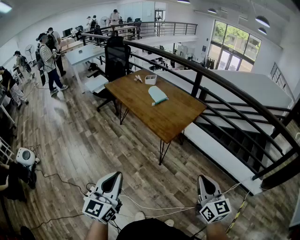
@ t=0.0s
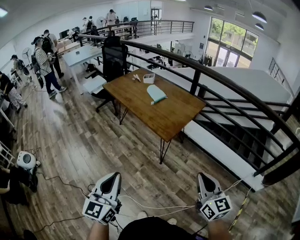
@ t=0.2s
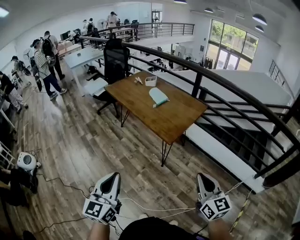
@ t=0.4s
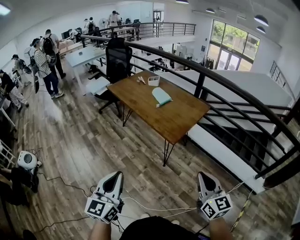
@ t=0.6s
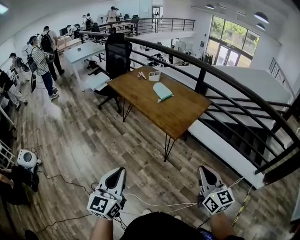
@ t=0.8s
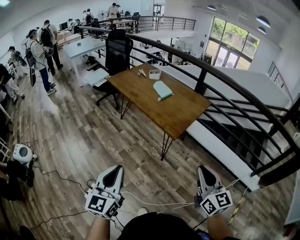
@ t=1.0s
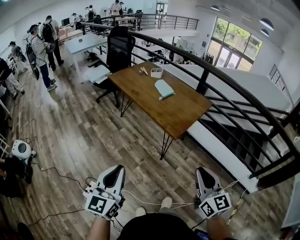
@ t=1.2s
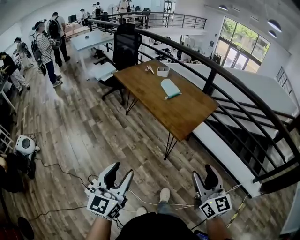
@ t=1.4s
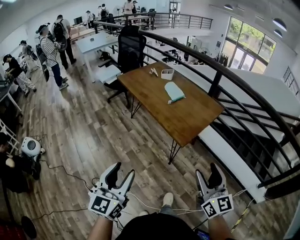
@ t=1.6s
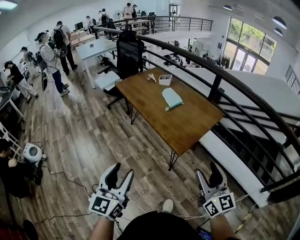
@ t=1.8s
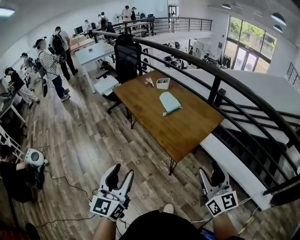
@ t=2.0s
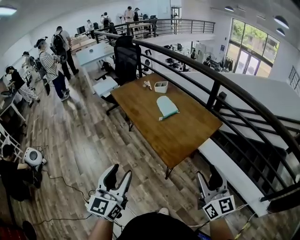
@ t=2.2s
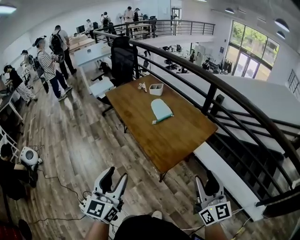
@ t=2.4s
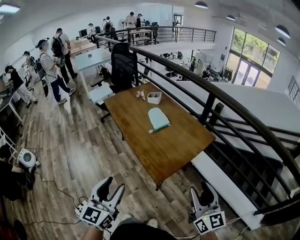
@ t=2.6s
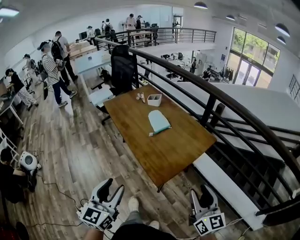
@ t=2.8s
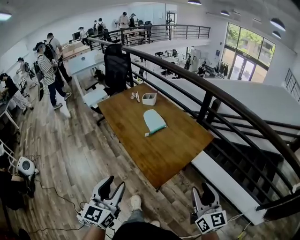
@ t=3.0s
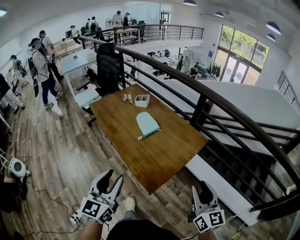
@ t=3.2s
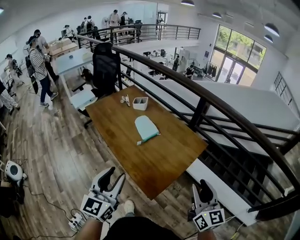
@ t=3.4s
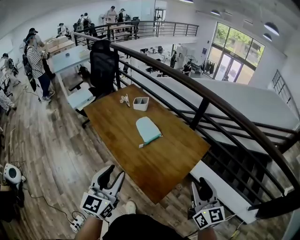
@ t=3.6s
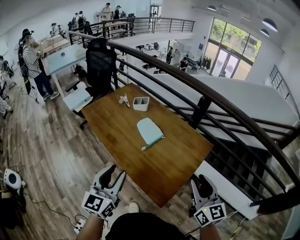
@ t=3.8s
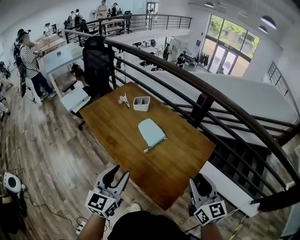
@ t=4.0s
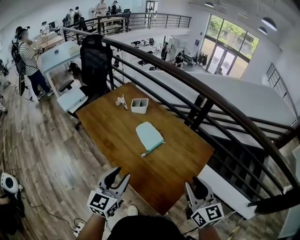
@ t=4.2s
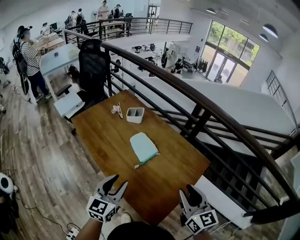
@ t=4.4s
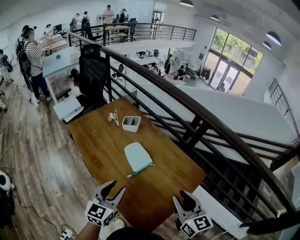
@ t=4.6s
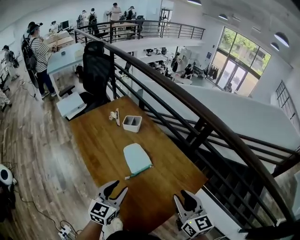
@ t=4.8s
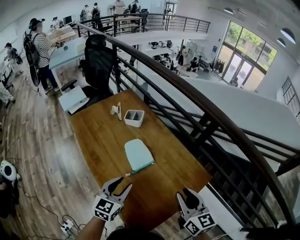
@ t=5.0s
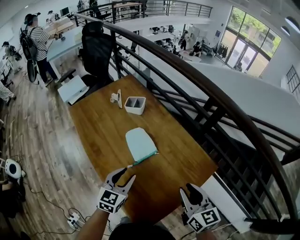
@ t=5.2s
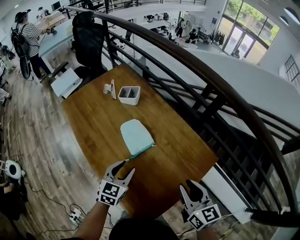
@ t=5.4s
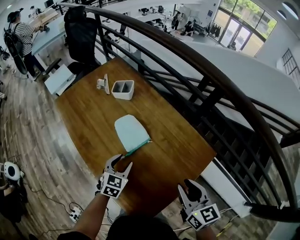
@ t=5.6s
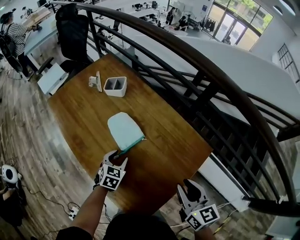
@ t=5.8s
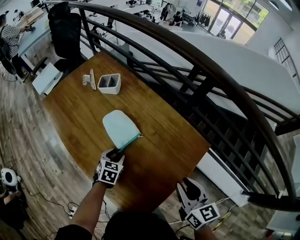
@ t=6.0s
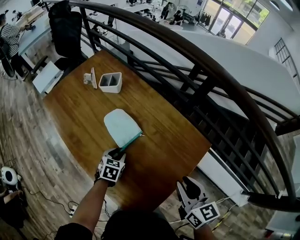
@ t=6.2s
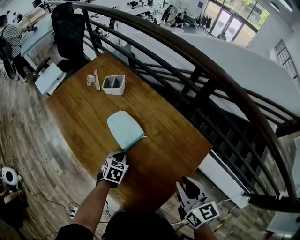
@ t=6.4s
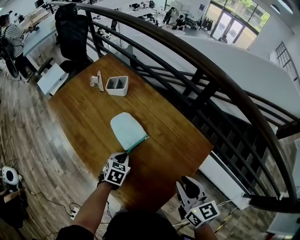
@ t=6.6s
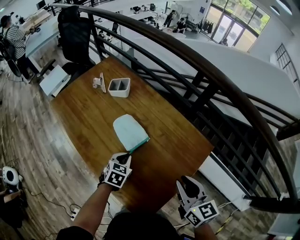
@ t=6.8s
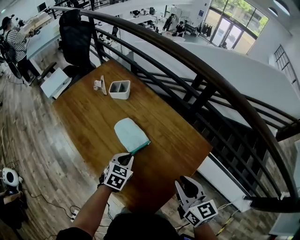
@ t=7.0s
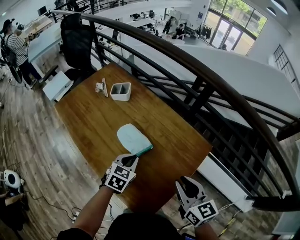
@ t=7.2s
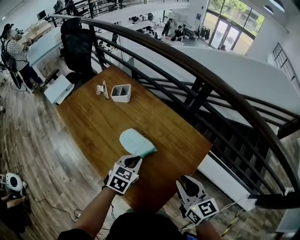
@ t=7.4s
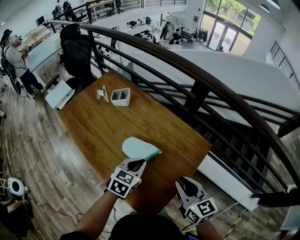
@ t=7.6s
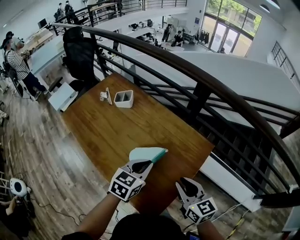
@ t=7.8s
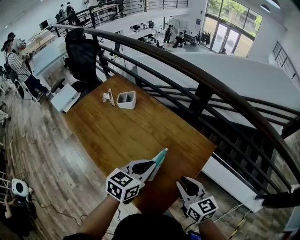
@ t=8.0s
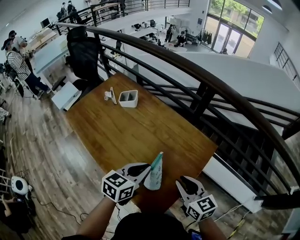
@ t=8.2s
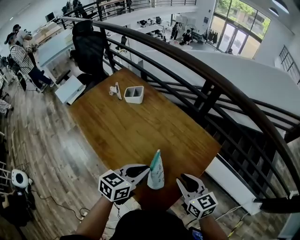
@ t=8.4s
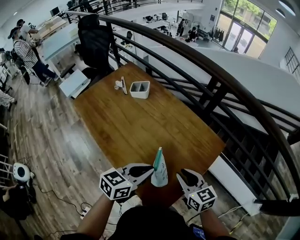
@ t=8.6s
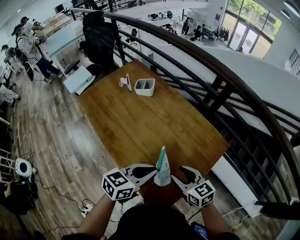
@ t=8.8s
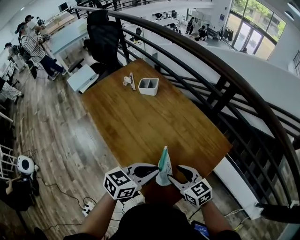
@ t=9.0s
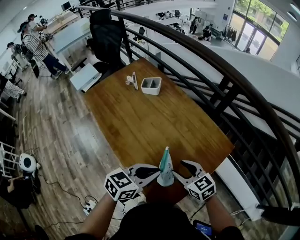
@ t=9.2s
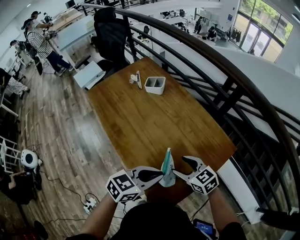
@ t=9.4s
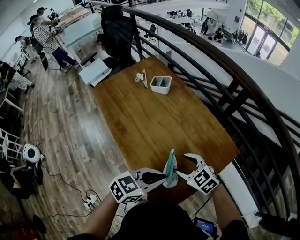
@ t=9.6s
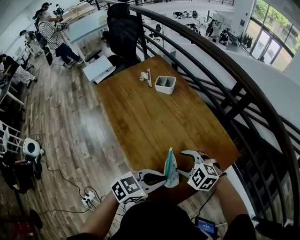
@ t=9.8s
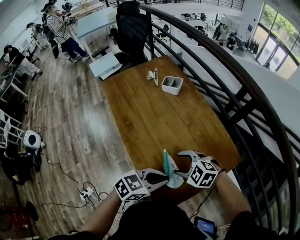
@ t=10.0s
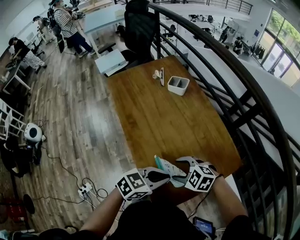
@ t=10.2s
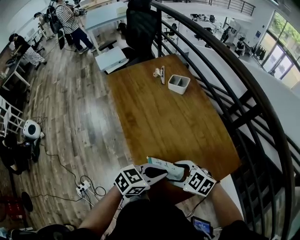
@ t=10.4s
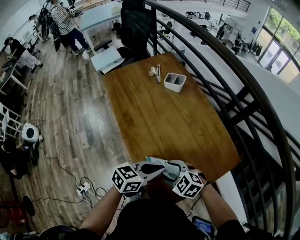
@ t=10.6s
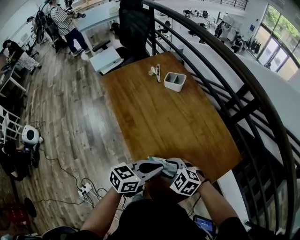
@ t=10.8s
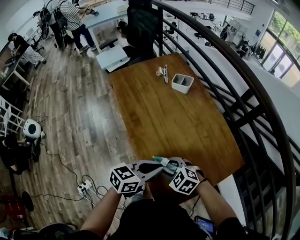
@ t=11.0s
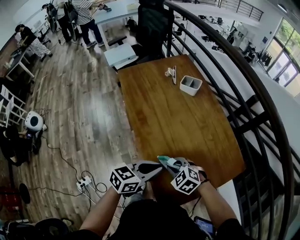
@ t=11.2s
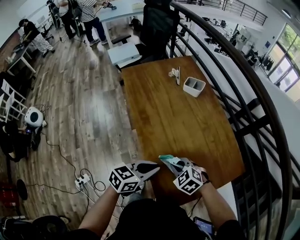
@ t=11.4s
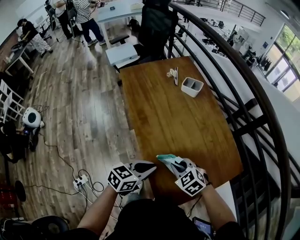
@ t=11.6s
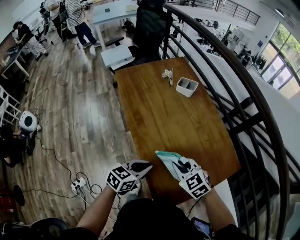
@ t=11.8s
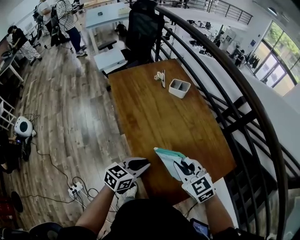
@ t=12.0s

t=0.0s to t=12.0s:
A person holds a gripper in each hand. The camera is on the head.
t=0.0s to t=1.6s: The right gripper is displaced forward and to the left by some 10 cm, and opens its fingers. Meanwhile the left gripper heads forward, covering roughly 5 cm, and opens up.
t=1.6s to t=3.0s: The grippers both shift forward and to the right by some 25 cm.
t=3.0s to t=4.4s: The right gripper heads forward and to the left, covering about 25 cm. The left gripper goes some 30 cm forward.
t=4.4s to t=6.0s: The left gripper goes approximately 30 cm downward, forward and to the right, and tilts its fingers roughly 40 degrees downward. Meanwhile the right gripper is displaced to the right, downward and forward by about 15 cm.
t=6.0s to t=7.6s: The right gripper changes place by roughly 5 cm; the left gripper heads upward and to the right, covering roughly 15 cm, changes its angle by roughly 20 degrees, and closes its fingers.
t=7.6s to t=9.0s: The right gripper goes about 15 cm to the left and downward, rotates some 30 degrees, and opens; the left gripper moves backward and upward, about 10 cm, and swivels approximately 20 degrees.
t=9.0s to t=10.4s: The right gripper changes place by roughly 5 cm, and rotates approximately 50 degrees.
t=10.4s to t=12.0s: The left gripper changes place by some 10 cm. The right gripper travels upward by approximately 5 cm, rotates approximately 30 degrees, and closes.

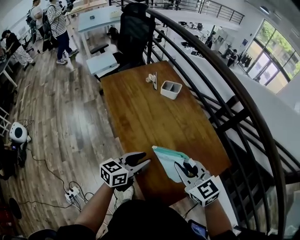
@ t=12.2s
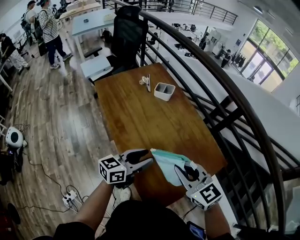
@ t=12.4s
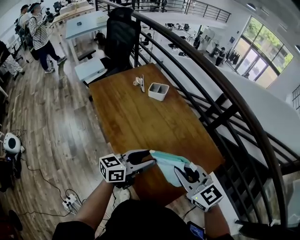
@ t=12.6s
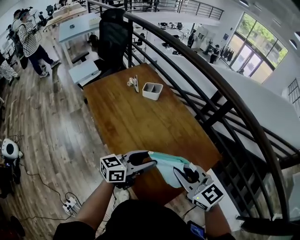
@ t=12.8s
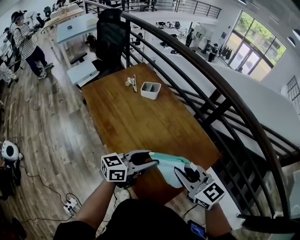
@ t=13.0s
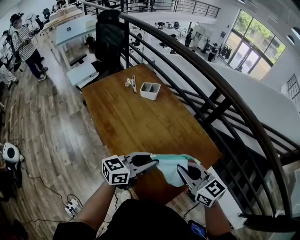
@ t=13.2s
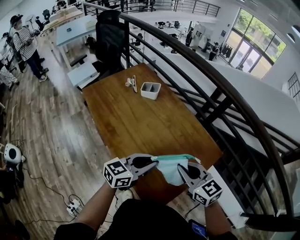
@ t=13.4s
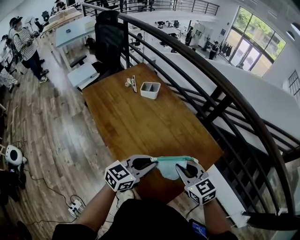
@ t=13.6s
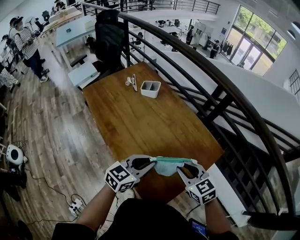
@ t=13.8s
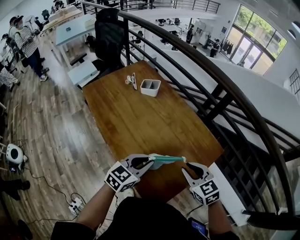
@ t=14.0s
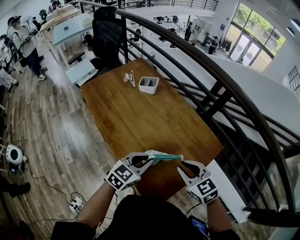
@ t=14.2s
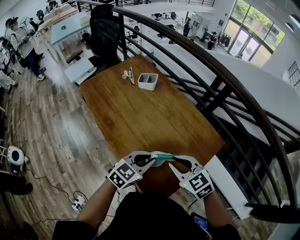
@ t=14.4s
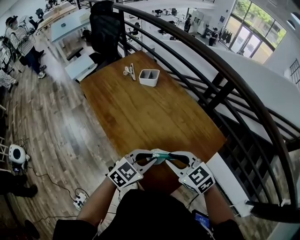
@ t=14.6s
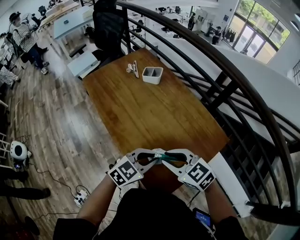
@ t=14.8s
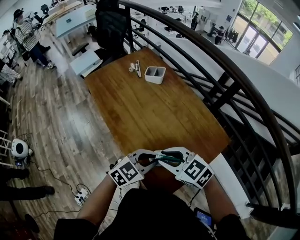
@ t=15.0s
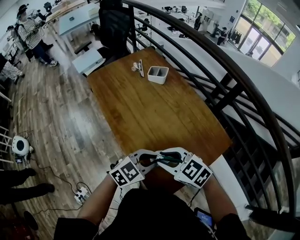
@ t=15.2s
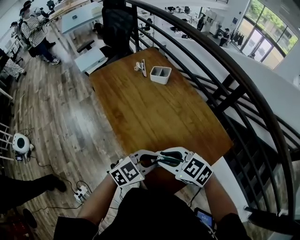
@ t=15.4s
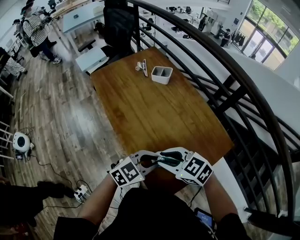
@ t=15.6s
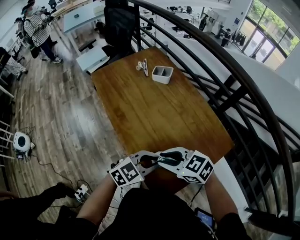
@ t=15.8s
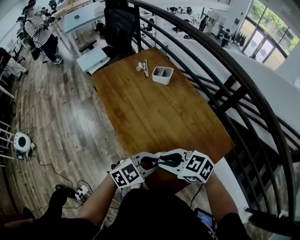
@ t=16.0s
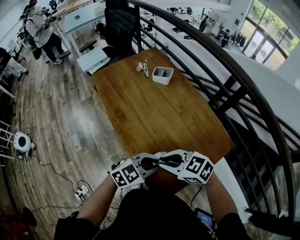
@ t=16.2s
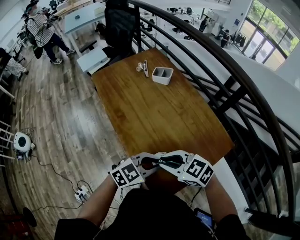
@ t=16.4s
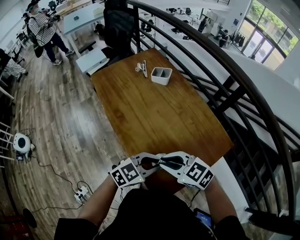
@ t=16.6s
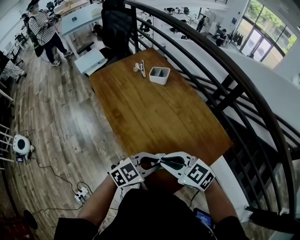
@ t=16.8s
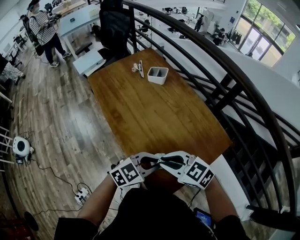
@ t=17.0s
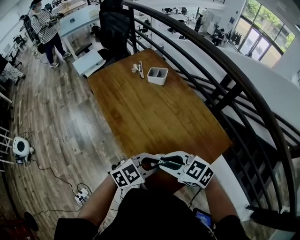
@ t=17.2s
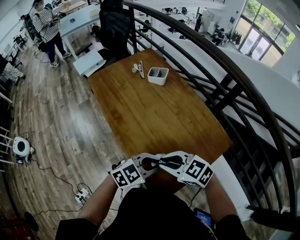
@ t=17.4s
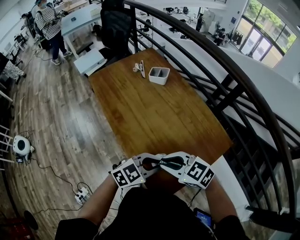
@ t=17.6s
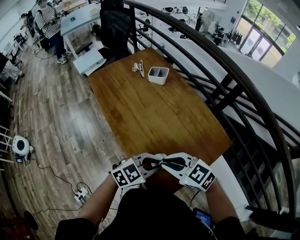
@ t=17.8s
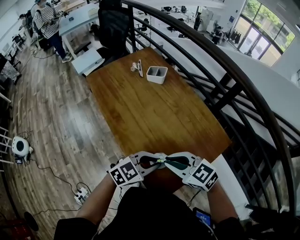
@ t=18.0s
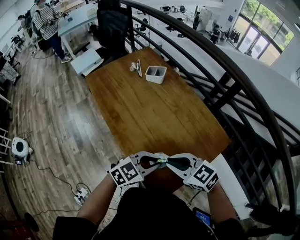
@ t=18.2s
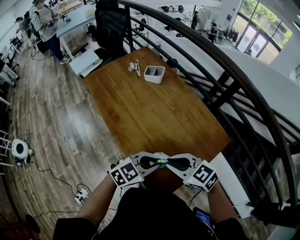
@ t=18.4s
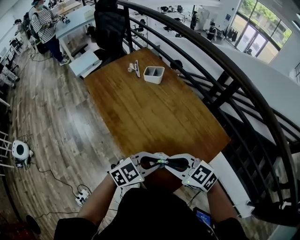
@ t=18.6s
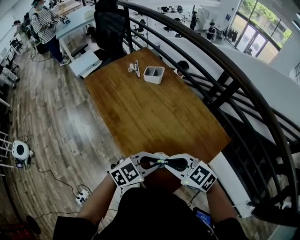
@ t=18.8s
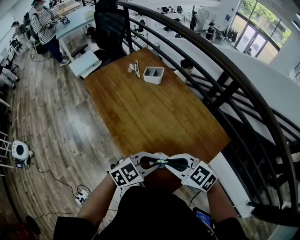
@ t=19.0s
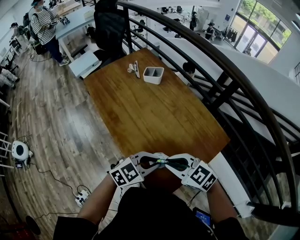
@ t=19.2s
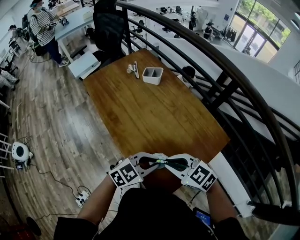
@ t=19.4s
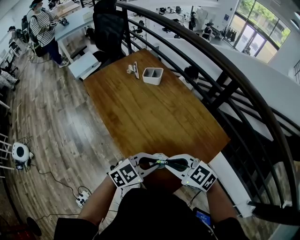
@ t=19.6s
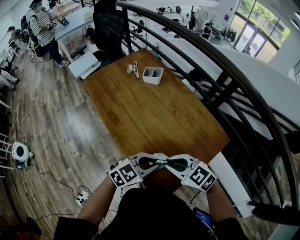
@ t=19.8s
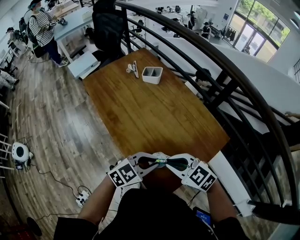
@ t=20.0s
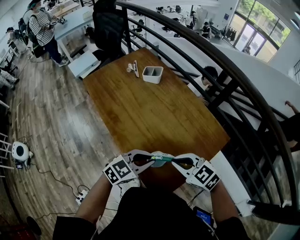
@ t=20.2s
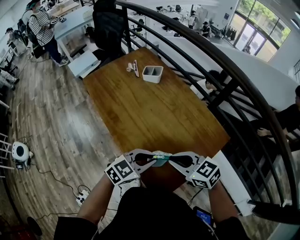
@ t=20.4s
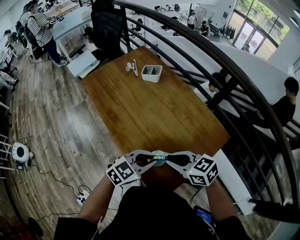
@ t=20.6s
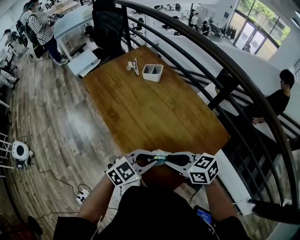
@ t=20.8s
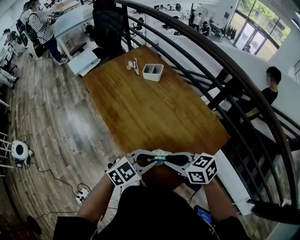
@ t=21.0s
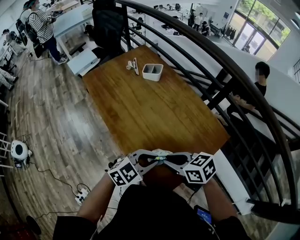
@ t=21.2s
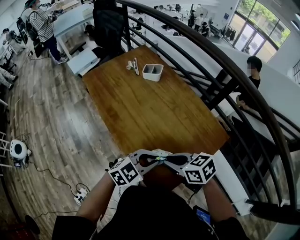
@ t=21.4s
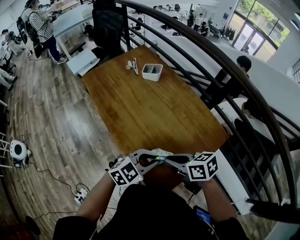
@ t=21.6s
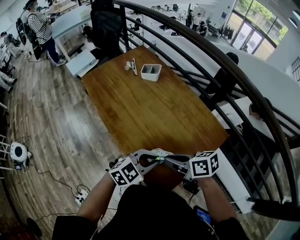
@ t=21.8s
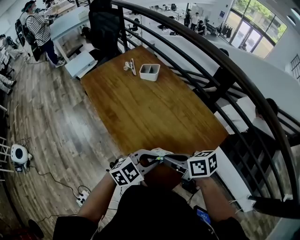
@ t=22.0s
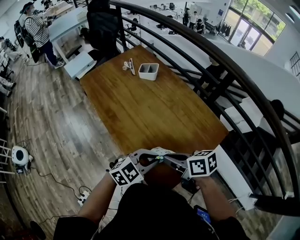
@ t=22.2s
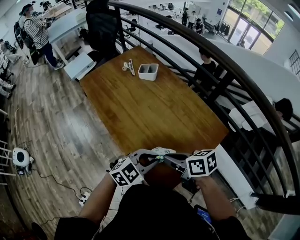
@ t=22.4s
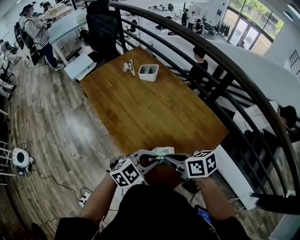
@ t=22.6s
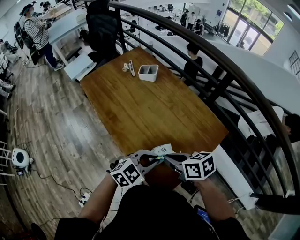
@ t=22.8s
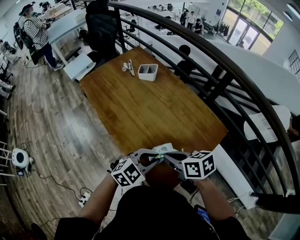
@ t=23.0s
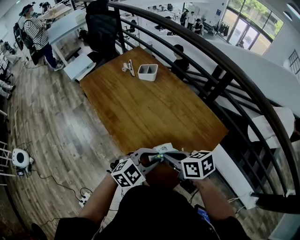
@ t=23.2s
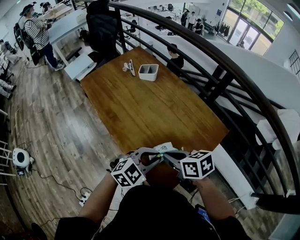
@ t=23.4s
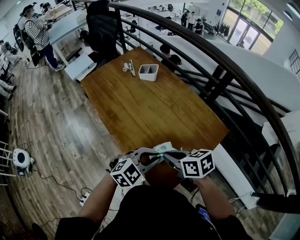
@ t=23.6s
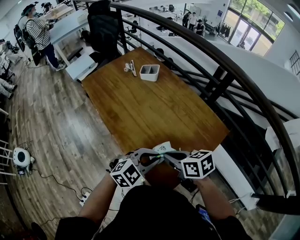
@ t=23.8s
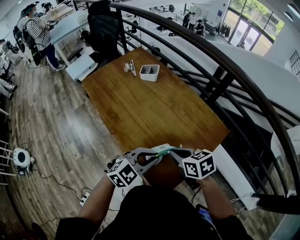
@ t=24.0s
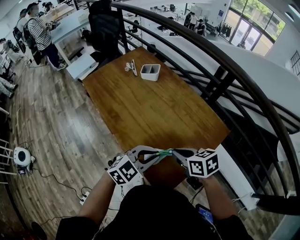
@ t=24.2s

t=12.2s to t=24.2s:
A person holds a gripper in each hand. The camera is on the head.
t=12.2s to t=13.8s: The right gripper is displaced to the right and downward by roughly 10 cm. The left gripper moves to the right, some 10 cm, swivels about 20 degrees, and closes up.
t=13.8s to t=15.2s: The right gripper changes place by some 10 cm, and rotates roughly 30 degrees.
t=15.2s to t=19.8s: There are only small adjustments of the grippers.
t=19.8s to t=21.2s: The right gripper changes its angle by approximately 30 degrees.
t=22.6s to t=24.2s: There are only small adjustments of the grippers.
